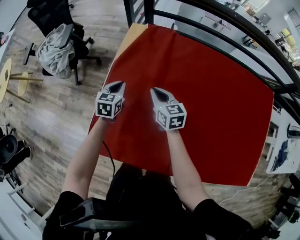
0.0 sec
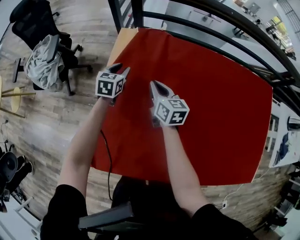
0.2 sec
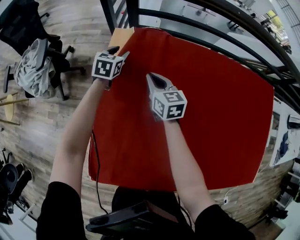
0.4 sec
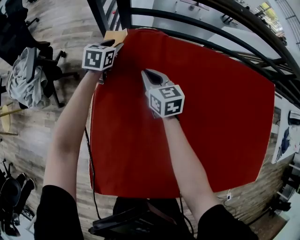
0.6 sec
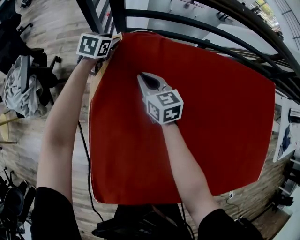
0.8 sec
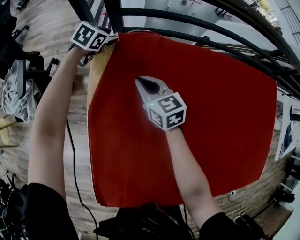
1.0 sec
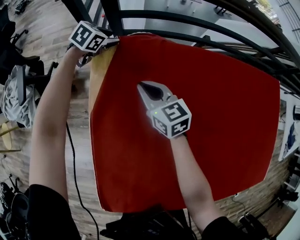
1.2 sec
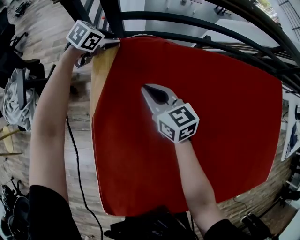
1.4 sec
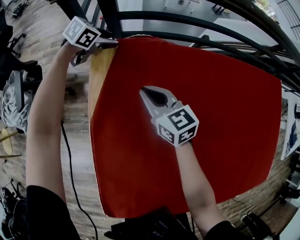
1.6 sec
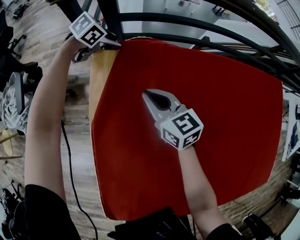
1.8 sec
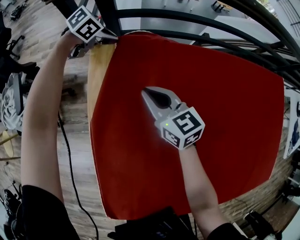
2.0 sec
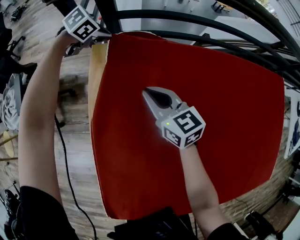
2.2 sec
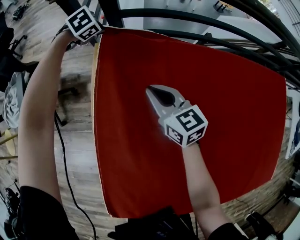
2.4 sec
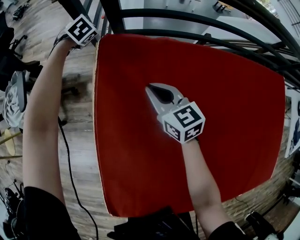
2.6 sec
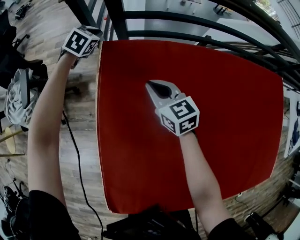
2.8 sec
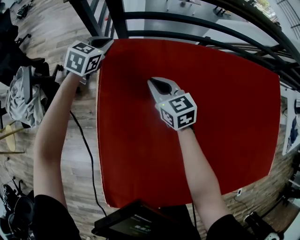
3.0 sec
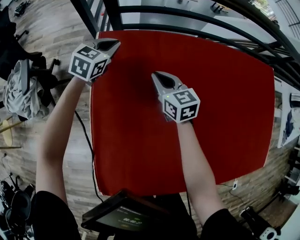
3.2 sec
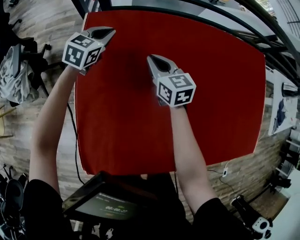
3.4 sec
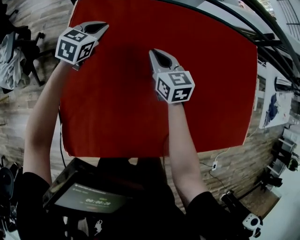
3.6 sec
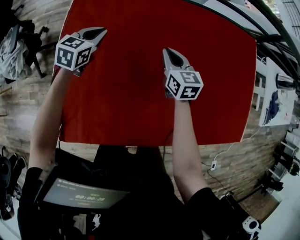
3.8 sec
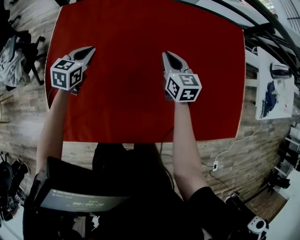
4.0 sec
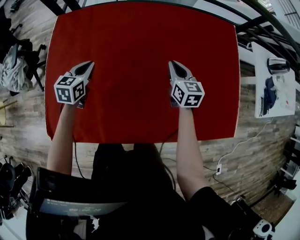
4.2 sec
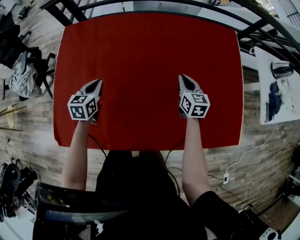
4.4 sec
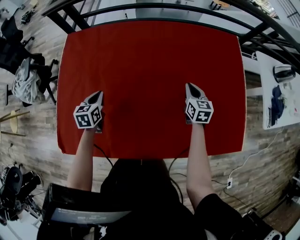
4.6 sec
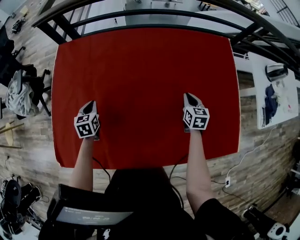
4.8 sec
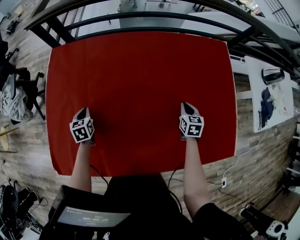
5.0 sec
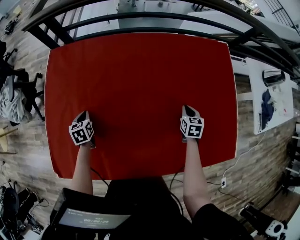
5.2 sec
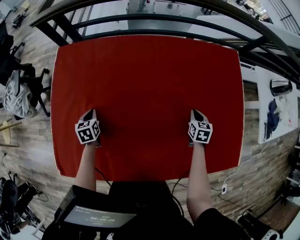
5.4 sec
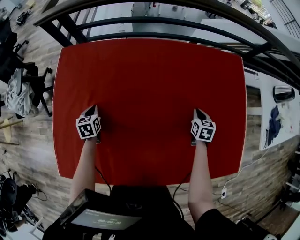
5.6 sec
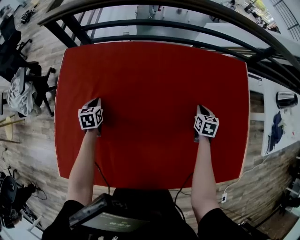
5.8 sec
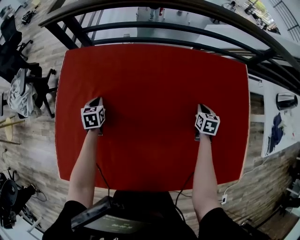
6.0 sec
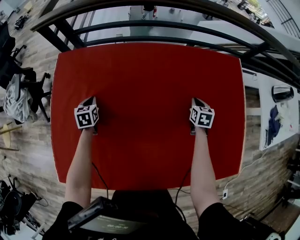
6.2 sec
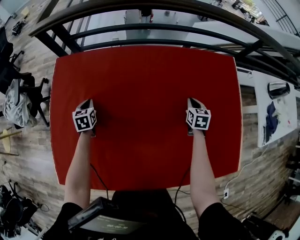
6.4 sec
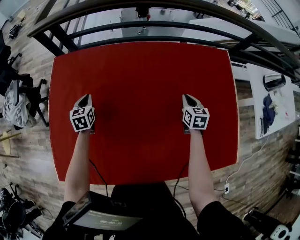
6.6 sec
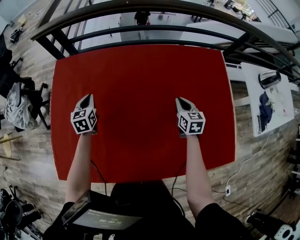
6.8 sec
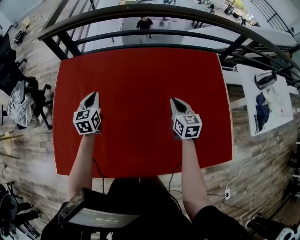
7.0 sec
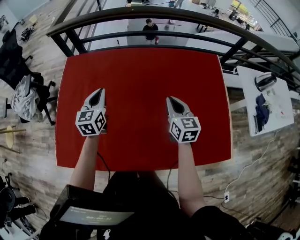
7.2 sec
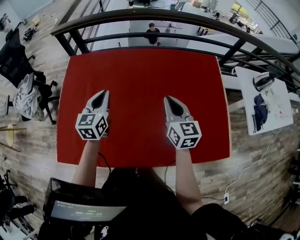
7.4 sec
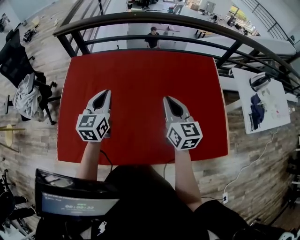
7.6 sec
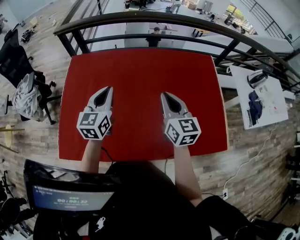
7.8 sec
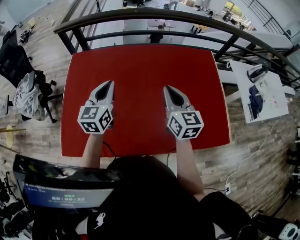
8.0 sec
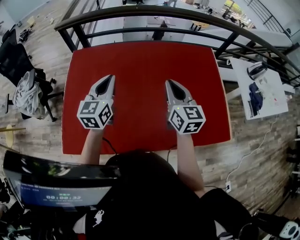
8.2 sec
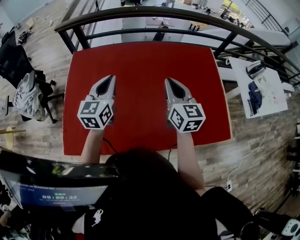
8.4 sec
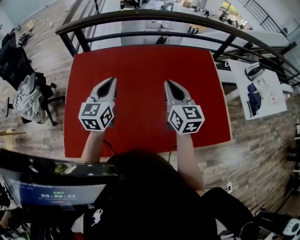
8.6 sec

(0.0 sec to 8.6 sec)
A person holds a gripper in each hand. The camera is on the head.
0.0 sec - 1.4 sec: The left gripper shifts by about 40 cm, changes its angle by about 50 degrees, and opens; the right gripper changes place by approximately 25 cm.
1.4 sec - 2.8 sec: The left gripper shifts by about 10 cm, turns by about 30 degrees, and closes up.
2.8 sec - 4.4 sec: The two grippers travel together, to the right and backward, roughly 60 cm. The left gripper changes its angle by about 40 degrees. Meanwhile the right gripper turns by about 30 degrees.
4.4 sec - 5.8 sec: The left gripper is displaced forward, downward and to the left by approximately 20 cm. The right gripper is displaced forward, downward and to the right by roughly 15 cm, and swivels roughly 30 degrees.
5.8 sec - 7.2 sec: The left gripper moves upward, to the right and backward, some 30 cm, and angles its fingers upward, by some 30 degrees, while the right gripper moves upward, backward and to the left, roughly 25 cm, and turns by some 30 degrees.
7.2 sec - 8.6 sec: The left gripper heads upward and backward, covering roughly 15 cm, while the right gripper moves upward, backward and to the left, roughly 20 cm.

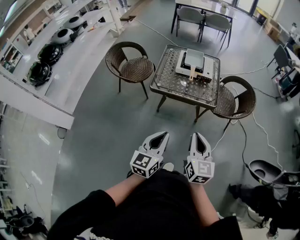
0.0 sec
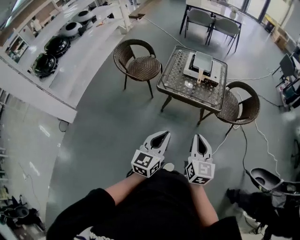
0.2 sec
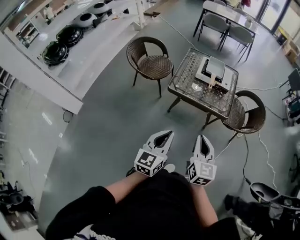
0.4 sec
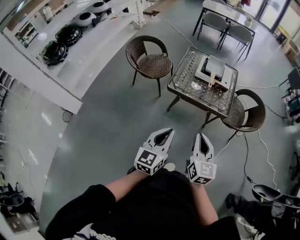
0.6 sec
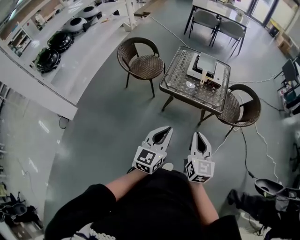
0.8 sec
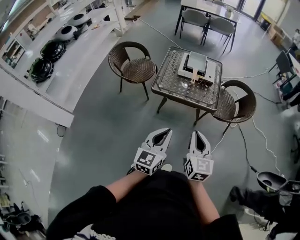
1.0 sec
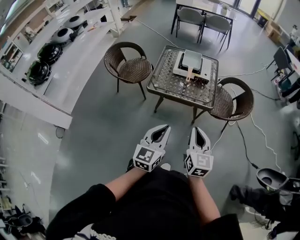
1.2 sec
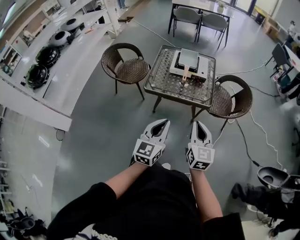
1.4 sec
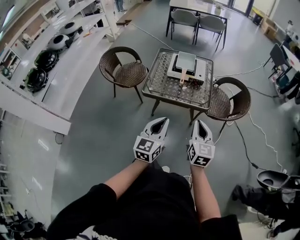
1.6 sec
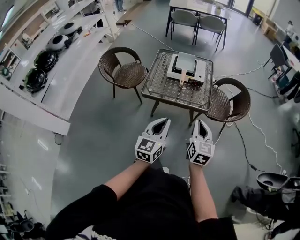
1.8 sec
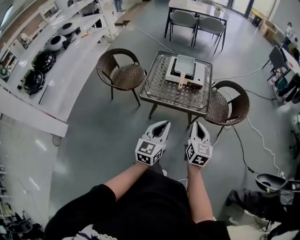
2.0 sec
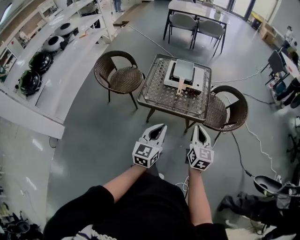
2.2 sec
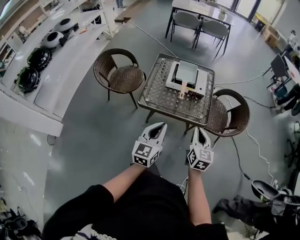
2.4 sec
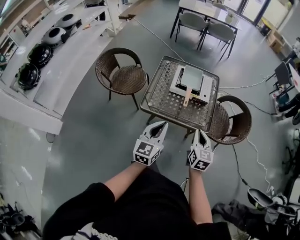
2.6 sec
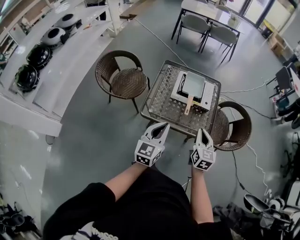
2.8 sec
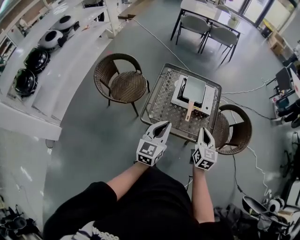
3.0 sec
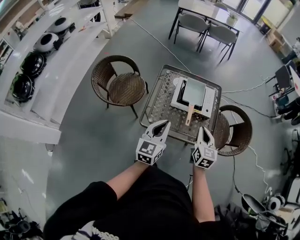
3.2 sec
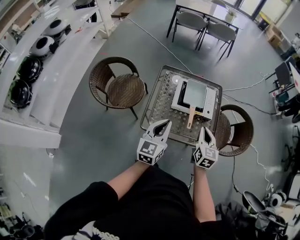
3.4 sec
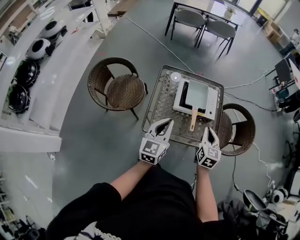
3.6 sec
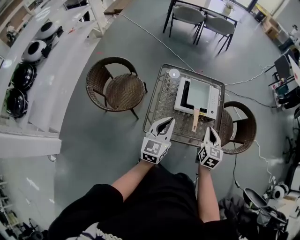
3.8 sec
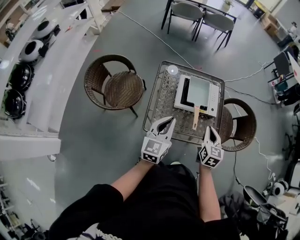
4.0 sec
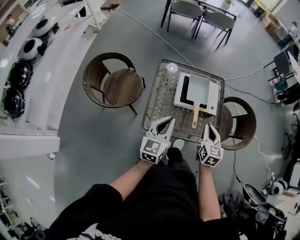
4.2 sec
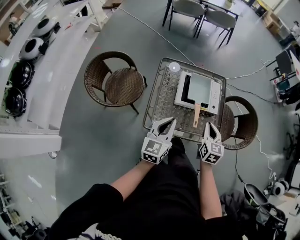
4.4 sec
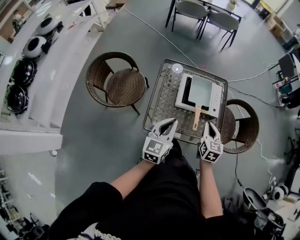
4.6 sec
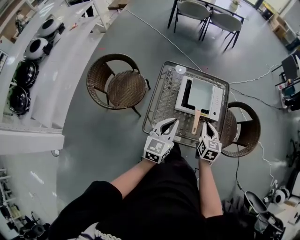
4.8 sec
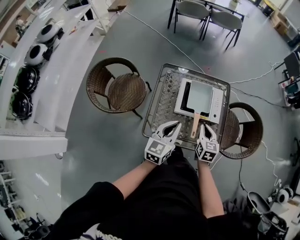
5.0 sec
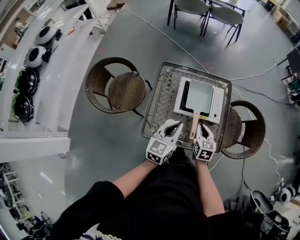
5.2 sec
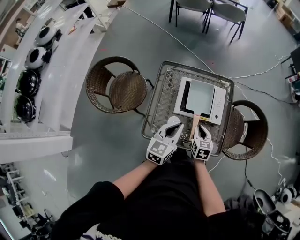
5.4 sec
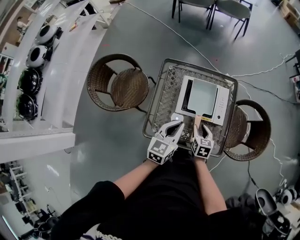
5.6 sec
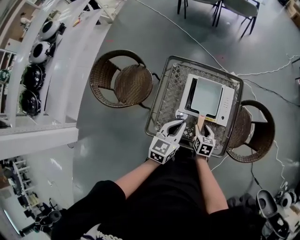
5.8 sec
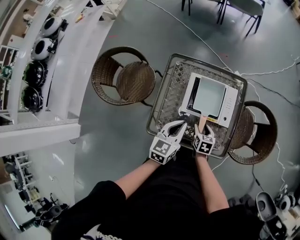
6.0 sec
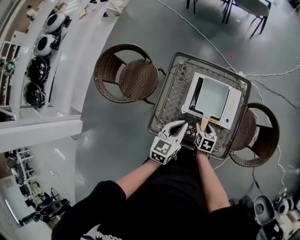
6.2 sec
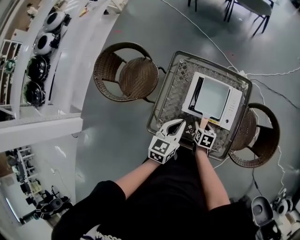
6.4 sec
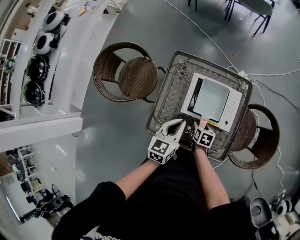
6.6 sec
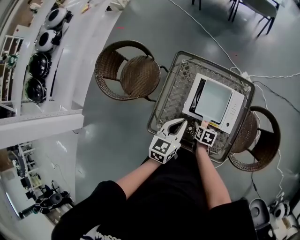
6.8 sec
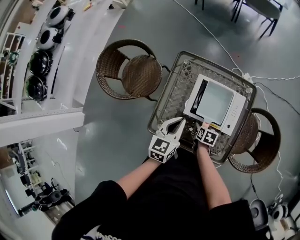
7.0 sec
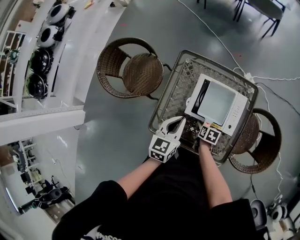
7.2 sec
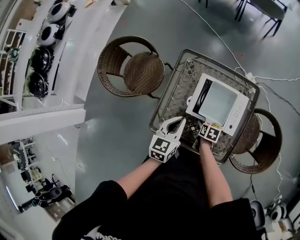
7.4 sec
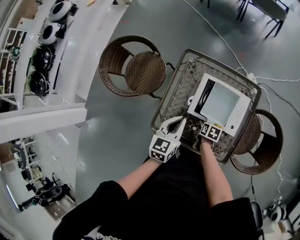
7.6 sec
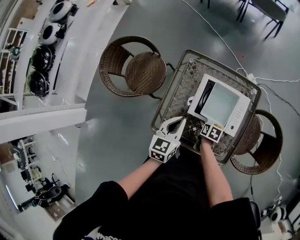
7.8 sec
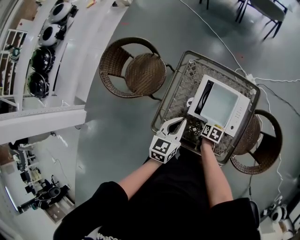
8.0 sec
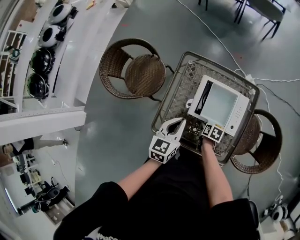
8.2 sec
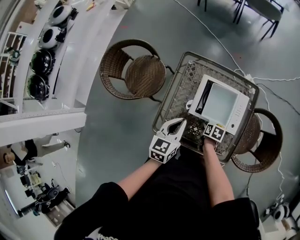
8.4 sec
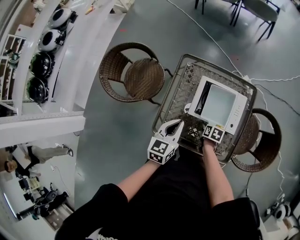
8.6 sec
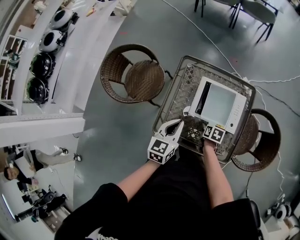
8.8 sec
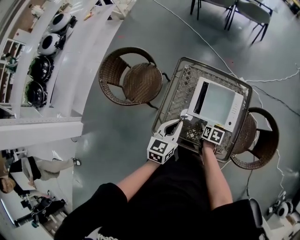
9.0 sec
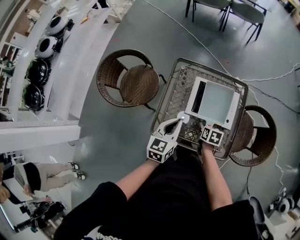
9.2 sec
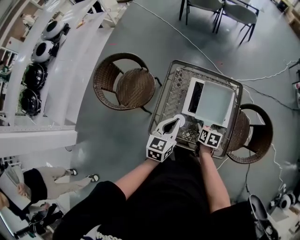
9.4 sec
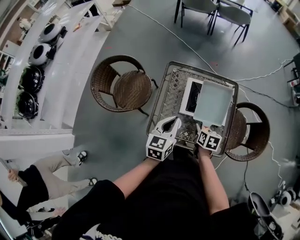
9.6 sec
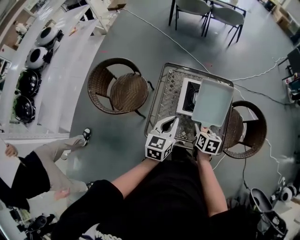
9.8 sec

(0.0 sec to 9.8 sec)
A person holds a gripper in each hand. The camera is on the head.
0.0 sec - 1.4 sec: The grippers both shift forward by some 5 cm.
1.4 sec - 2.8 sec: Both grippers travel together forward, approximately 25 cm.
2.8 sec - 4.2 sec: The two grippers go about 20 cm forward and to the left.
4.2 sec - 5.6 sec: The left gripper heads forward, to the right and downward, covering some 20 cm. The right gripper is displaced downward and forward by roughly 20 cm, rotates roughly 20 degrees, and opens up.
5.6 sec - 7.0 sec: The right gripper goes roughly 10 cm downward, and swivels about 30 degrees. The left gripper is displaced forward and downward by approximately 10 cm.
7.0 sec - 8.4 sec: The right gripper closes.
8.4 sec - 9.8 sec: The right gripper heads upward, covering roughly 20 cm, and rotates about 30 degrees. Meanwhile the left gripper travels upward and backward by some 10 cm.

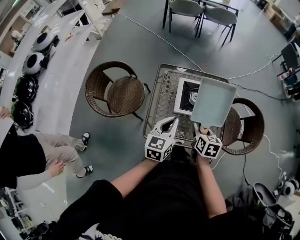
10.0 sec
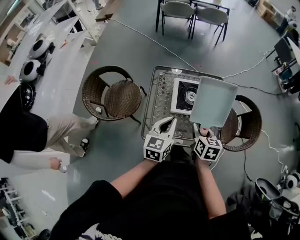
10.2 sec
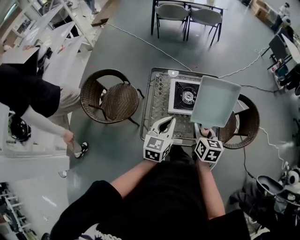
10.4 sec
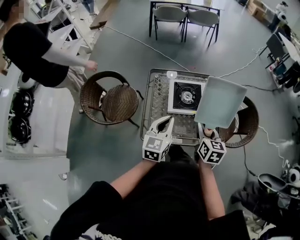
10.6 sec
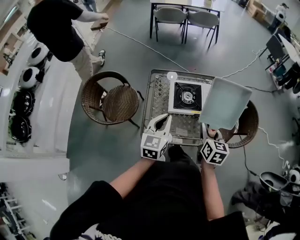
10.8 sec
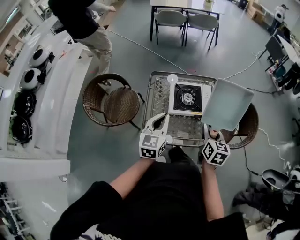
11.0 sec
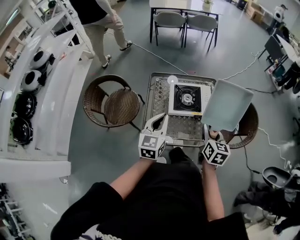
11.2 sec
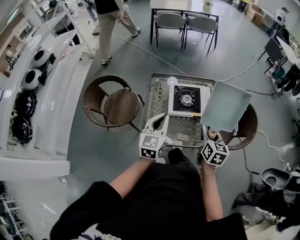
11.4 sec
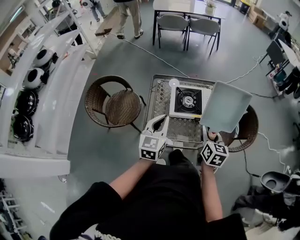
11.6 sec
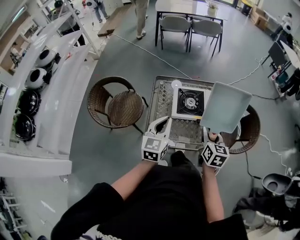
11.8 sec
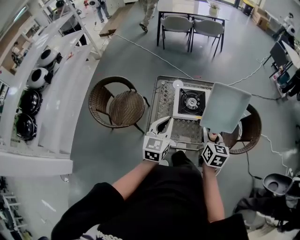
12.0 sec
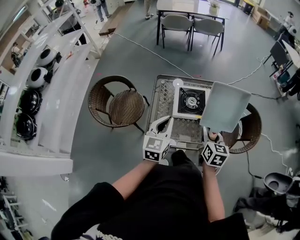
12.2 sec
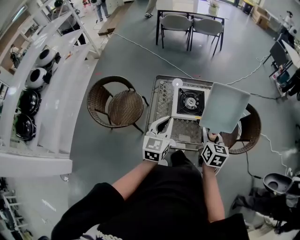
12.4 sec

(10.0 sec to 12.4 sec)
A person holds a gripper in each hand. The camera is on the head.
10.0 sec - 11.2 sec: The left gripper changes place by roughly 5 cm. The right gripper shifts some 15 cm upward, to the right and backward.
11.2 sec - 12.4 sec: There are only small adjustments of the grippers.

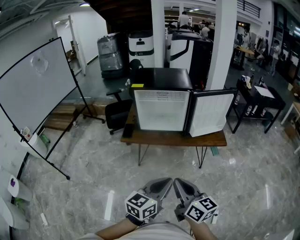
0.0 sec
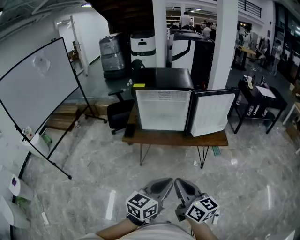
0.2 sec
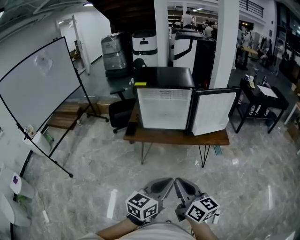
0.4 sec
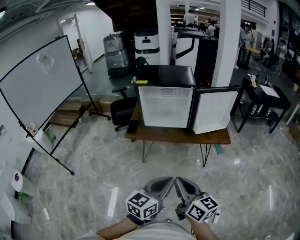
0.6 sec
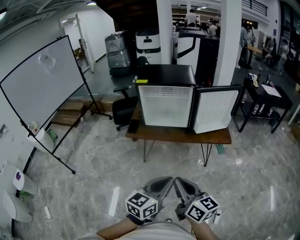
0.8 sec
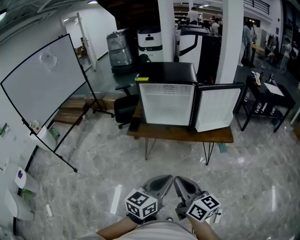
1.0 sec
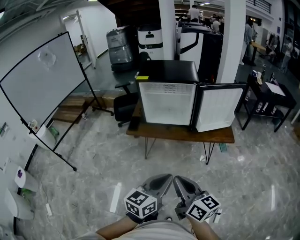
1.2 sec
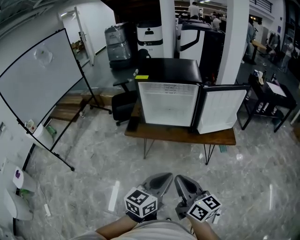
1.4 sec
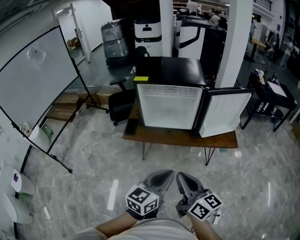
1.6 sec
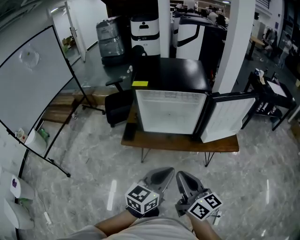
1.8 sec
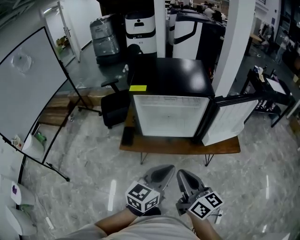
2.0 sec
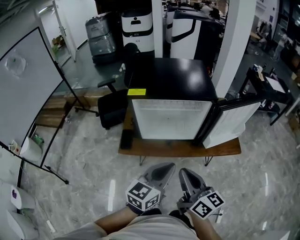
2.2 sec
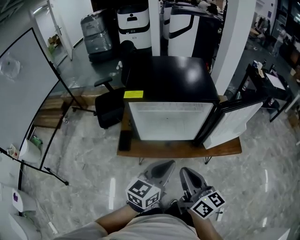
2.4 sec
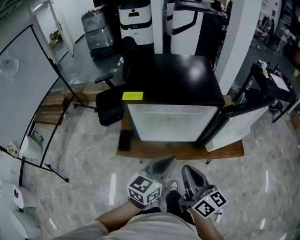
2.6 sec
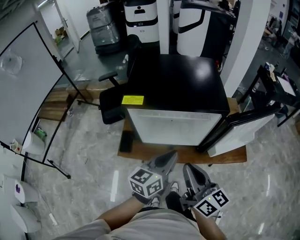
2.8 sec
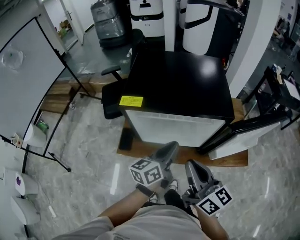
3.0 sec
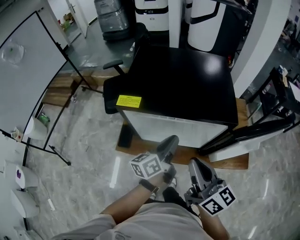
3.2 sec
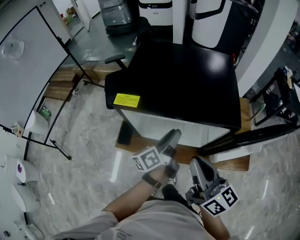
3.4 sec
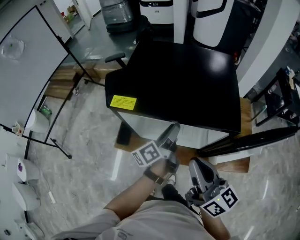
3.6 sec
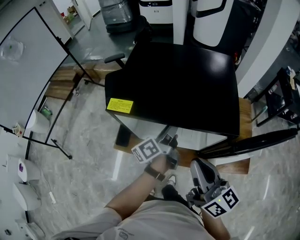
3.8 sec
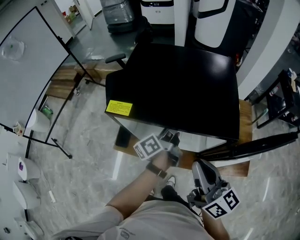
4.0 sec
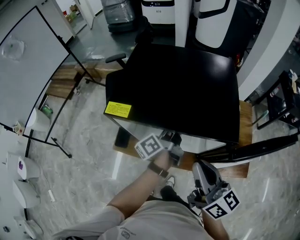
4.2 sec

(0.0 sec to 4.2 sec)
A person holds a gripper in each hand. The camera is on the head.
0.0 sec - 1.4 sec: The left gripper changes place by about 5 cm.
1.4 sec - 2.8 sec: Both grippers travel together forward, about 35 cm.
2.8 sec - 4.2 sec: The left gripper goes roughly 20 cm forward, and twists about 50 degrees counterclockwise, seen from behind. Meanwhile the right gripper shifts some 15 cm forward and to the right.
